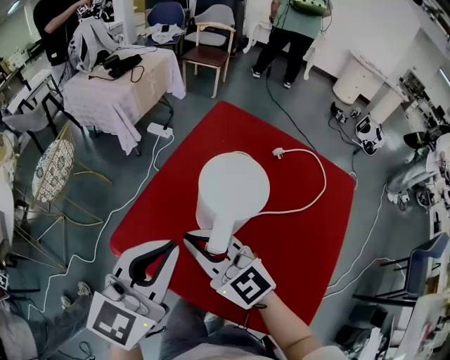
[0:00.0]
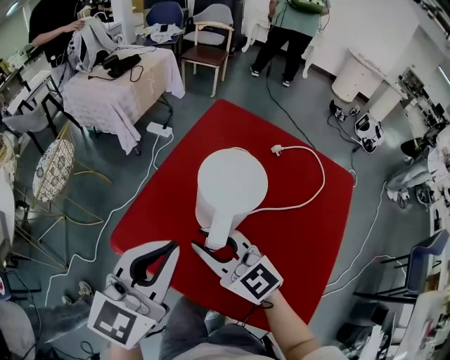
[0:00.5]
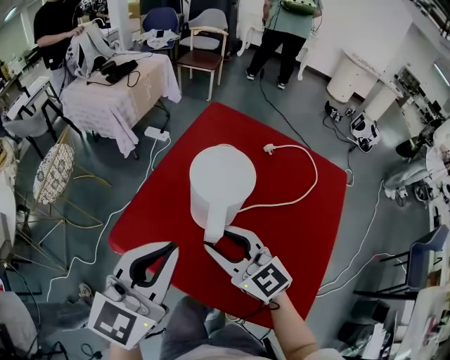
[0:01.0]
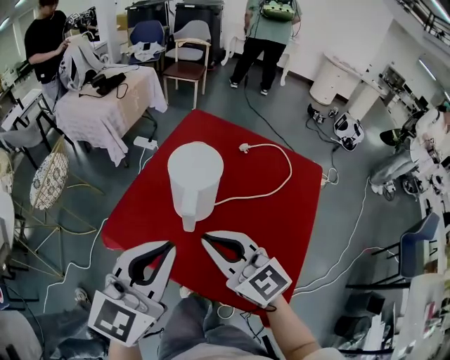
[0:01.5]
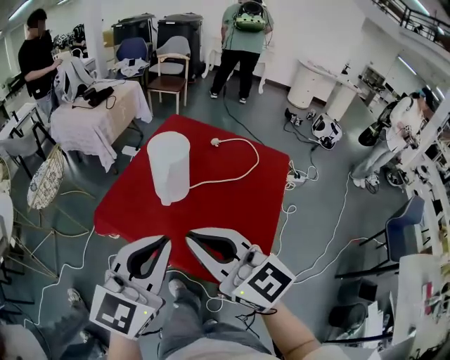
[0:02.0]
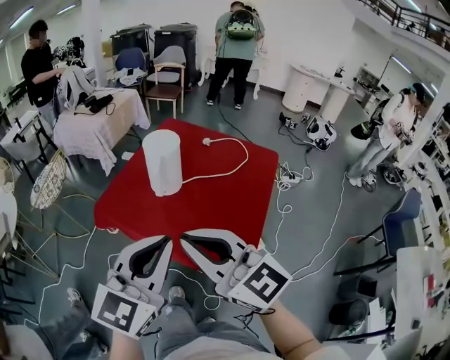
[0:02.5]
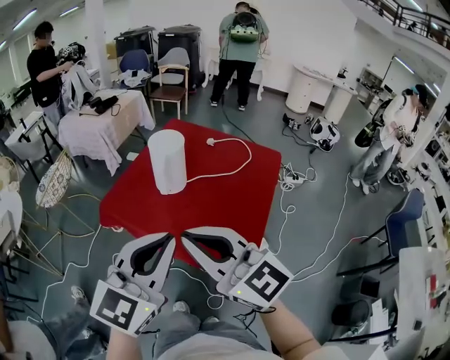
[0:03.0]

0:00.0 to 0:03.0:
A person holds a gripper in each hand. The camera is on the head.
0:00.0 to 0:01.5: The left gripper is displaced backward by roughly 10 cm, while the right gripper travels backward, to the right and upward by approximately 15 cm, and opens and closes again.
0:01.5 to 0:03.0: The grippers both shift backward and upward by about 25 cm.

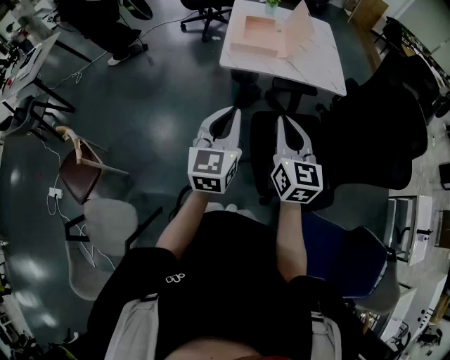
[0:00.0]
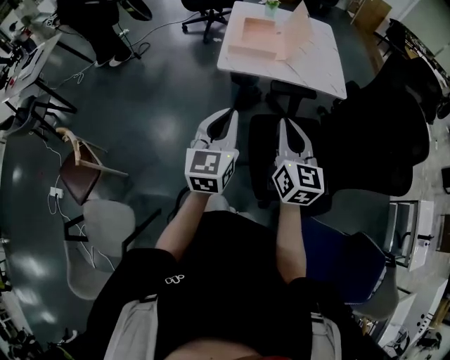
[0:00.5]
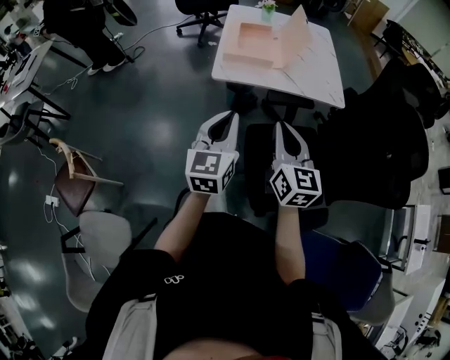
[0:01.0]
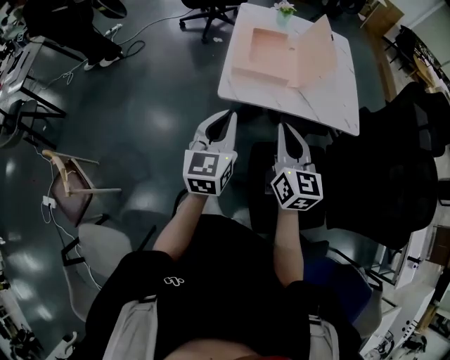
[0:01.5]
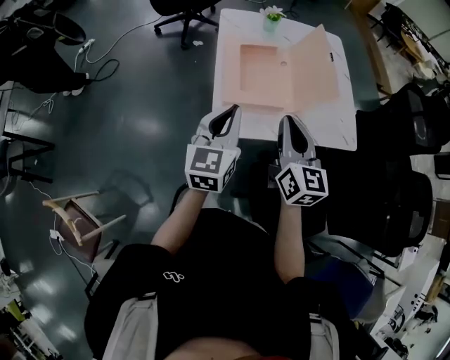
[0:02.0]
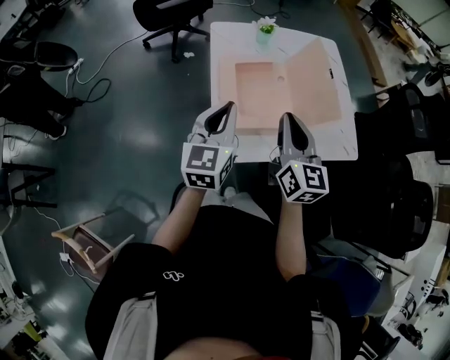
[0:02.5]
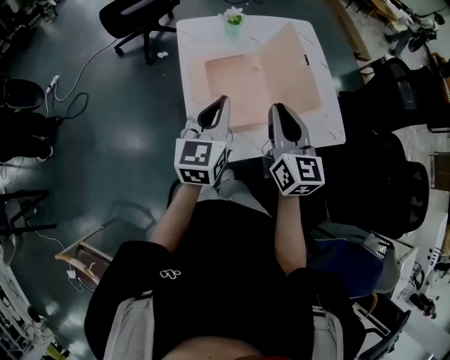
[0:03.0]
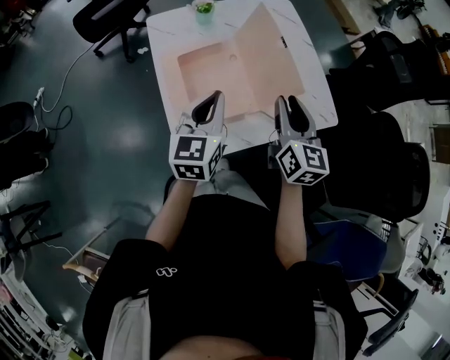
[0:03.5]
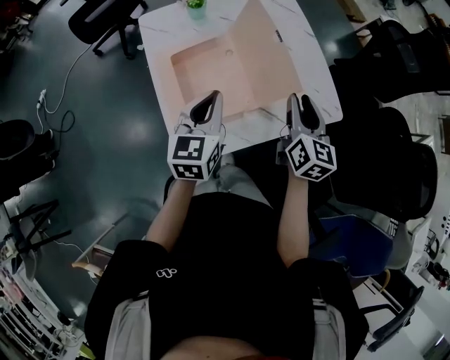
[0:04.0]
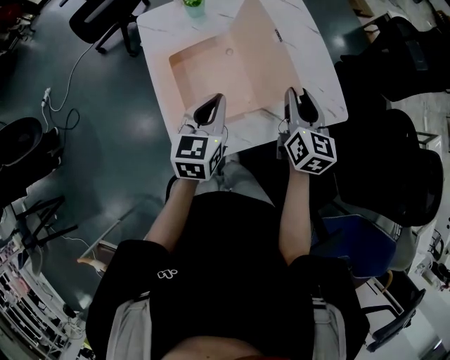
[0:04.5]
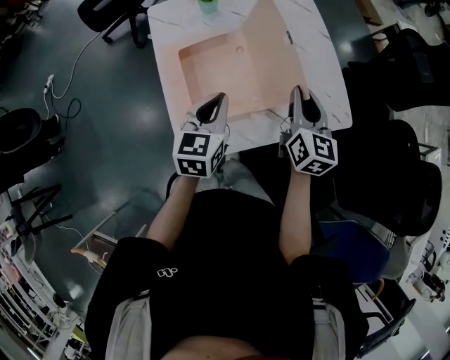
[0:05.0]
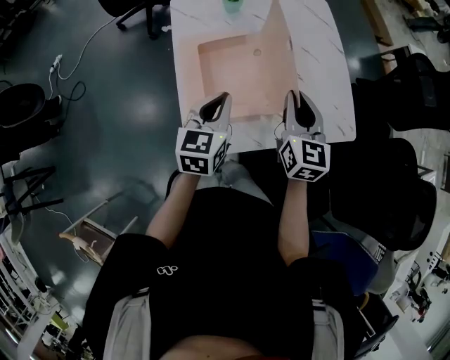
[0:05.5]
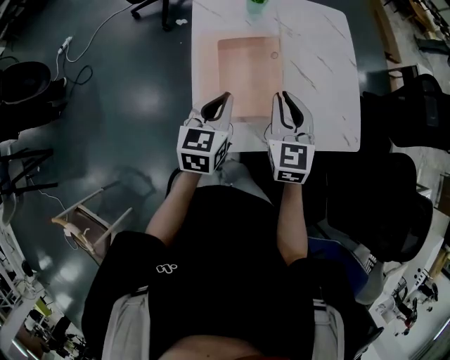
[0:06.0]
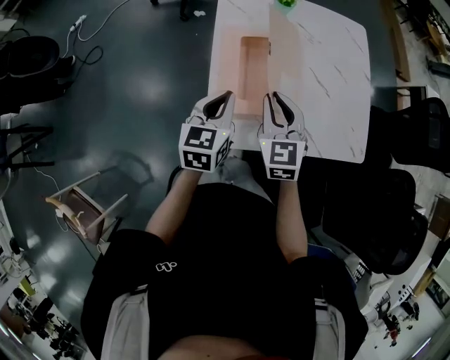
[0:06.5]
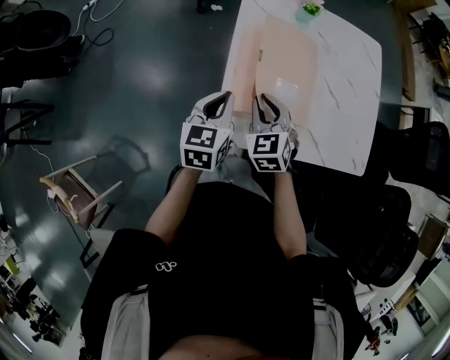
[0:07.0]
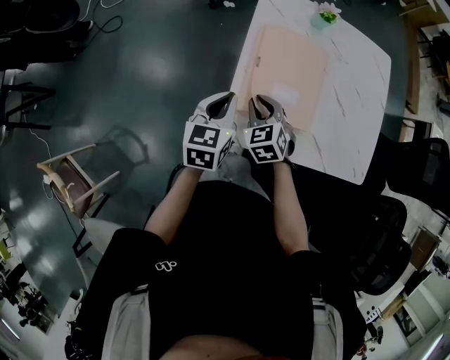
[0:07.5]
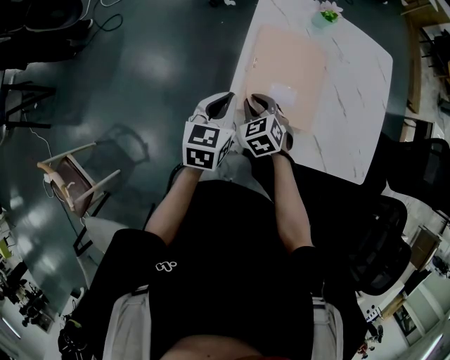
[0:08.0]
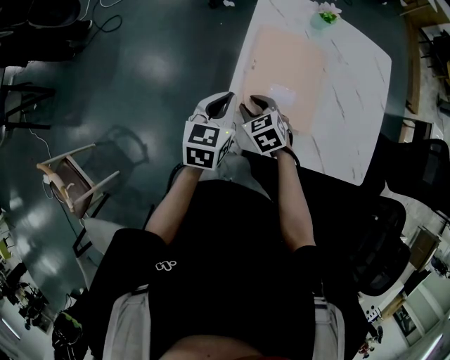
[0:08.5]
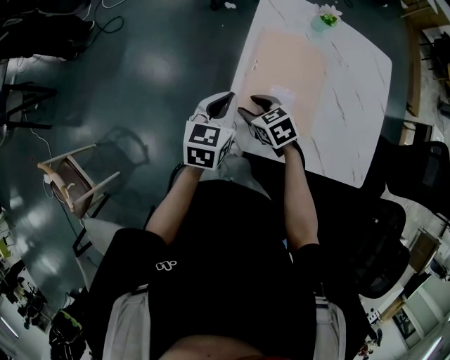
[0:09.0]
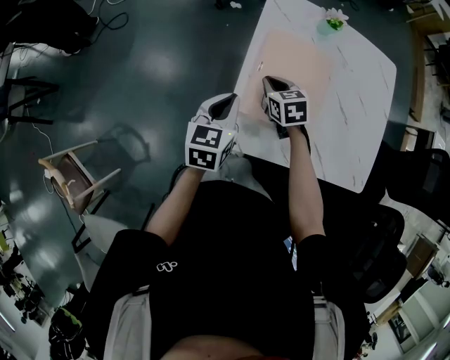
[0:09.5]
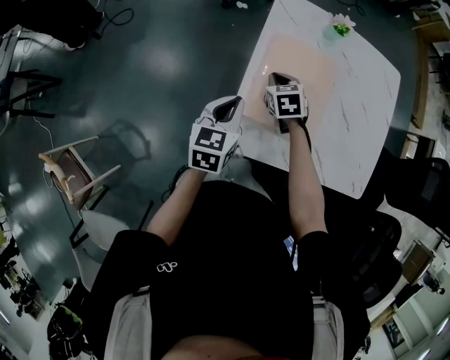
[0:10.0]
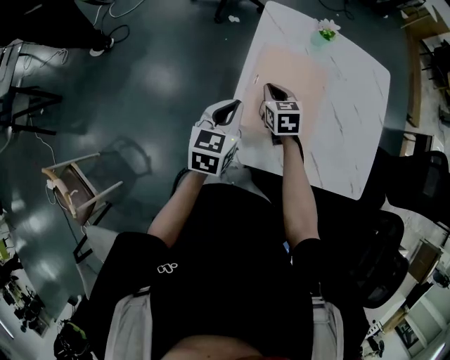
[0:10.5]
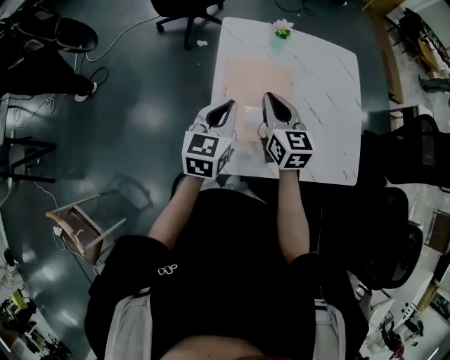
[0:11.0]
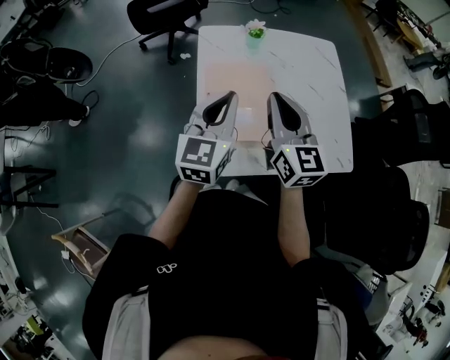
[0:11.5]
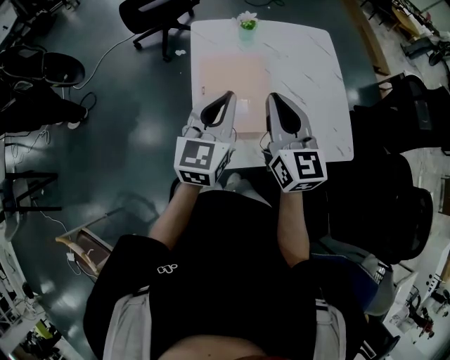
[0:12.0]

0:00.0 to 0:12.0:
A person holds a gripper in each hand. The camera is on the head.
0:00.0 to 0:02.0: Both grippers travel together forward, about 40 cm.
0:02.0 to 0:04.0: The left gripper shifts approximately 20 cm forward and to the right; the right gripper goes some 25 cm to the right and forward, turns by about 30 degrees, and opens its fingers.
0:04.0 to 0:06.0: The left gripper moves to the left, approximately 5 cm, while the right gripper is displaced to the left by some 15 cm, rotates approximately 40 degrees, and closes up.
0:06.0 to 0:08.0: The right gripper shifts approximately 25 cm to the left and downward, and tips its fingers downward by approximately 30 degrees. Meanwhile the left gripper heads to the left, covering roughly 10 cm.
0:08.0 to 0:10.0: The right gripper is displaced forward and to the right by approximately 15 cm, and opens, then closes once more.
0:10.0 to 0:12.0: The left gripper is displaced upward and to the right by approximately 20 cm, and swivels roughly 30 degrees. The right gripper shifts approximately 35 cm upward, to the right and backward, and angles its fingers upward, by roughly 50 degrees.

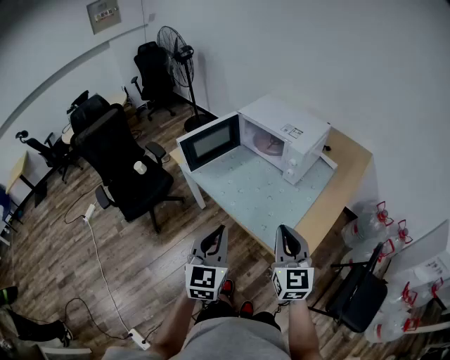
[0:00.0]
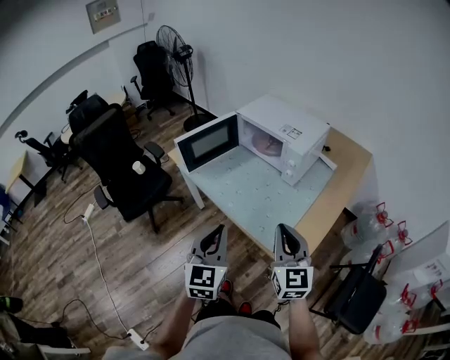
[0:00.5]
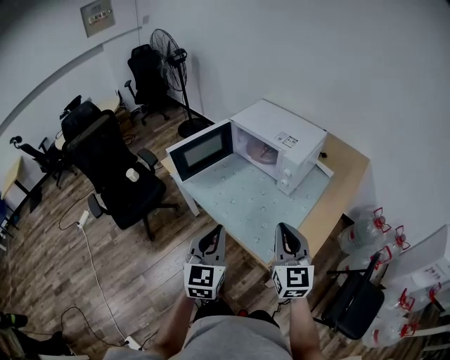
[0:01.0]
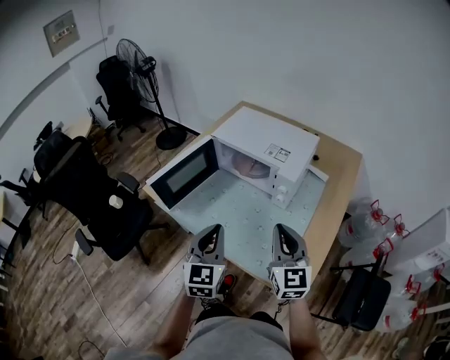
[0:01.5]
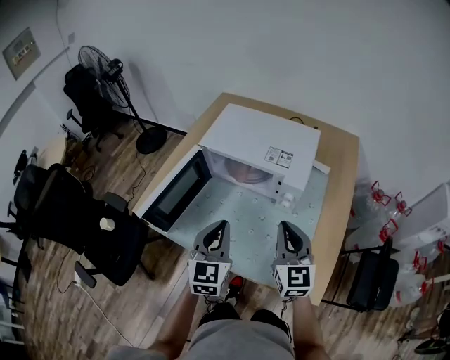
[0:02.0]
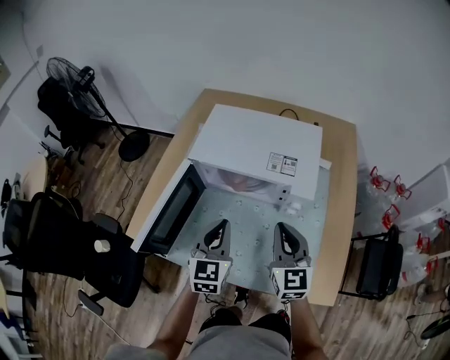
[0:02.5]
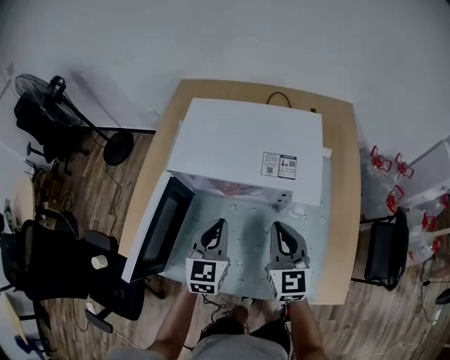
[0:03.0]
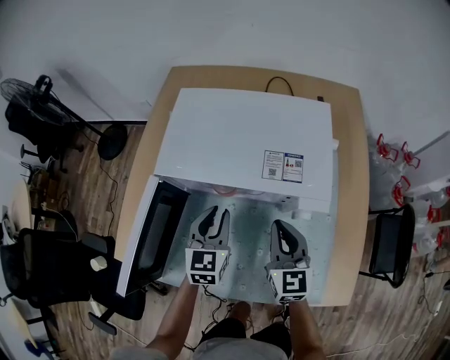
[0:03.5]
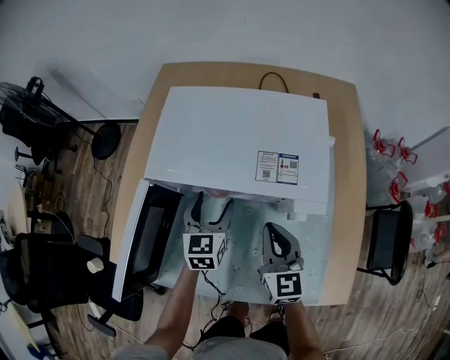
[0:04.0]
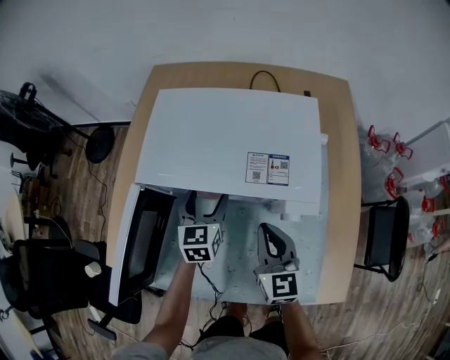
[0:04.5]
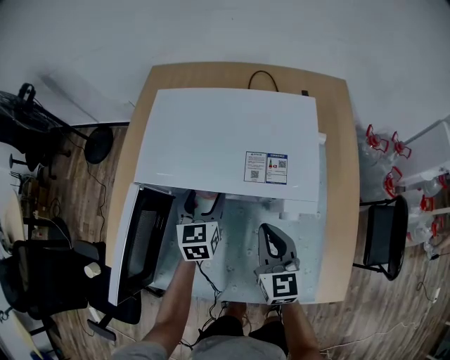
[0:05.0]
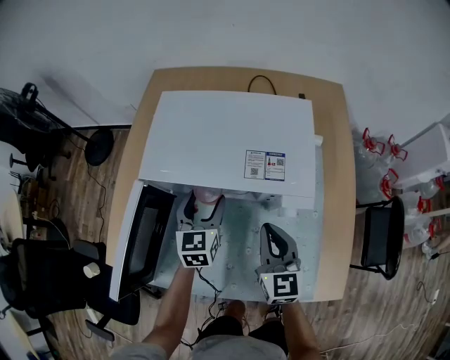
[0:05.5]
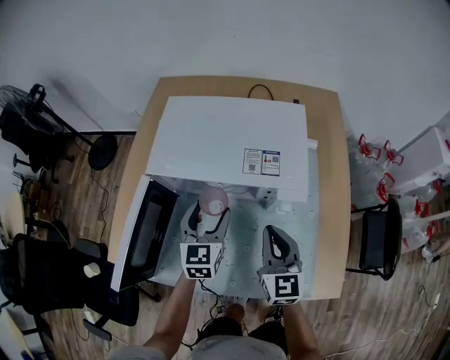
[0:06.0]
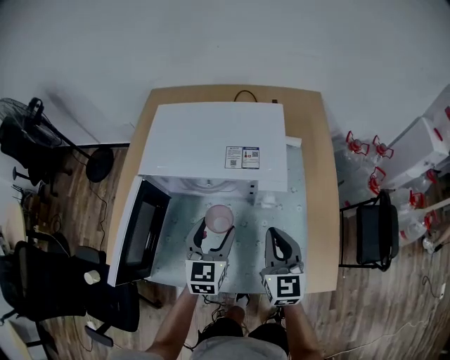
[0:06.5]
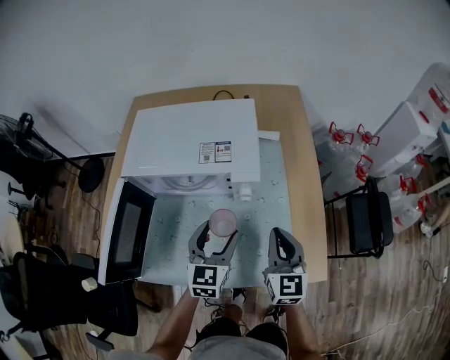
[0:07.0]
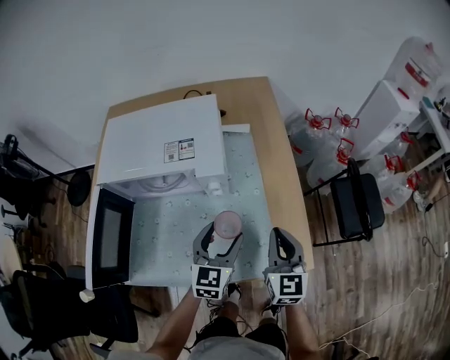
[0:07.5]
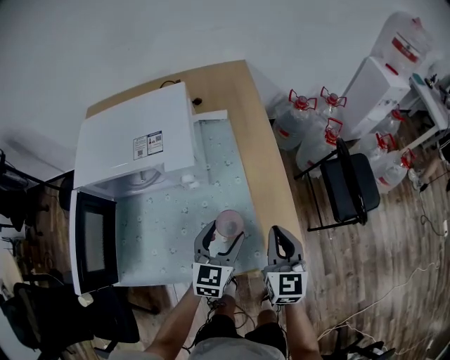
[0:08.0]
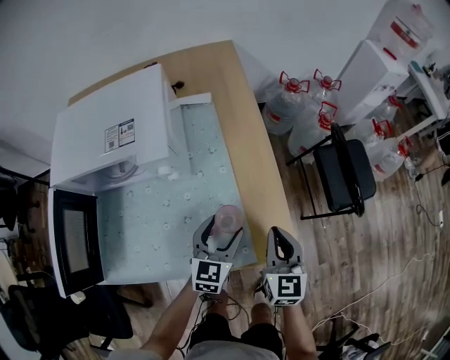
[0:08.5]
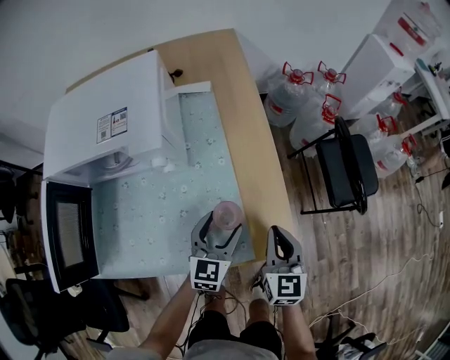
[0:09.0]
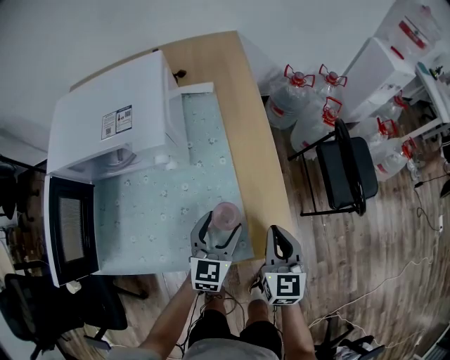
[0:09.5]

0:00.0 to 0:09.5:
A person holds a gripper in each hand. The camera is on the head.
0:00.0 to 0:02.0: The grippers both shift forward by approximately 30 cm.
0:02.0 to 0:04.0: The right gripper is displaced downward and forward by about 20 cm. The left gripper goes approximately 30 cm forward and downward, and opens up.
0:04.0 to 0:05.5: The grippers stay close to where they were, moving slightly.
0:05.5 to 0:07.5: The grippers both shift to the right and backward by about 25 cm. The left gripper swivels roughly 20 degrees.
0:07.5 to 0:09.5: The two grippers go about 15 cm to the right and downward.

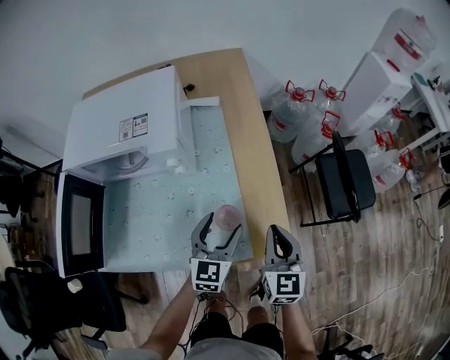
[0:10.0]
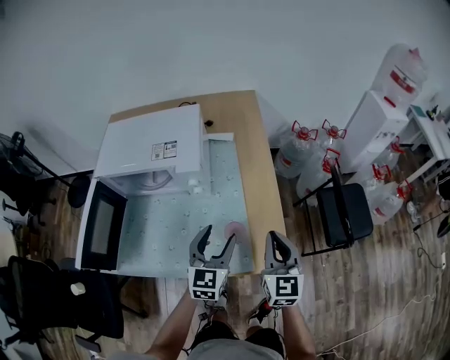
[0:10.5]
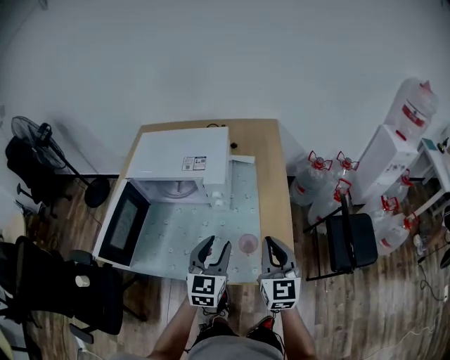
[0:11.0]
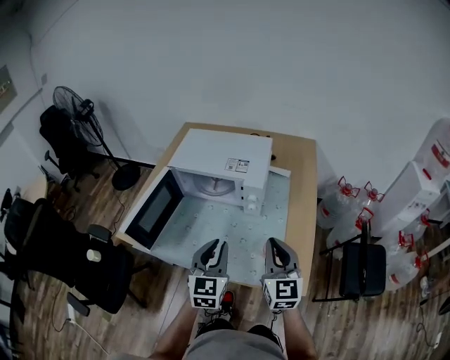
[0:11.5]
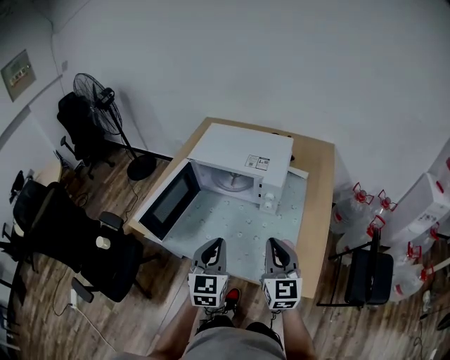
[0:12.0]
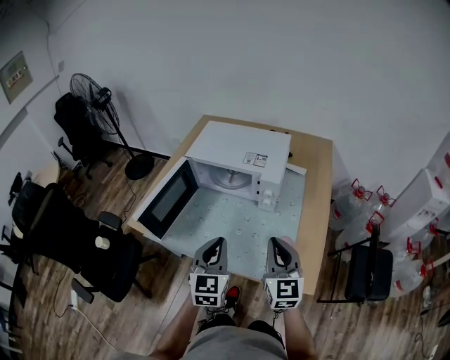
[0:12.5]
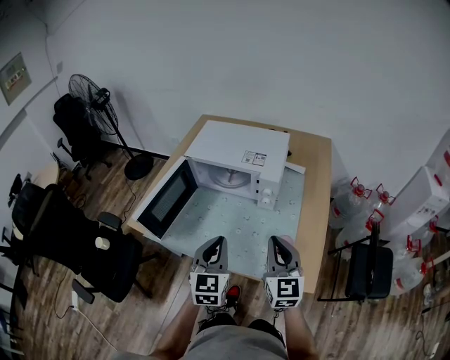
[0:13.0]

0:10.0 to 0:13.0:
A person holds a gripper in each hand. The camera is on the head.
0:10.0 to 0:11.5: The two grippers go roughly 20 cm upward. The right gripper changes its angle by approximately 30 degrees. The left gripper turns by about 30 degrees, and closes its fingers.
0:11.5 to 0:13.0: The grippers stay close to where they were, moving slightly.
